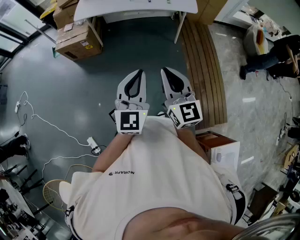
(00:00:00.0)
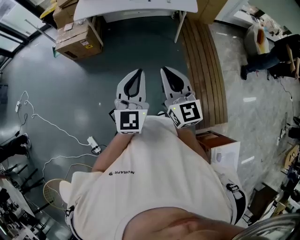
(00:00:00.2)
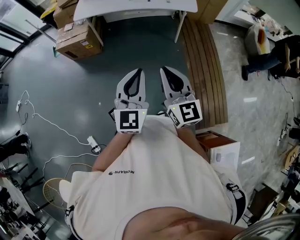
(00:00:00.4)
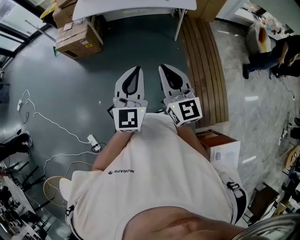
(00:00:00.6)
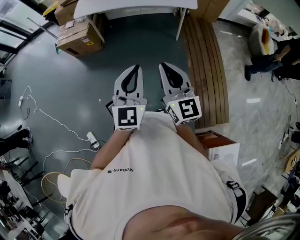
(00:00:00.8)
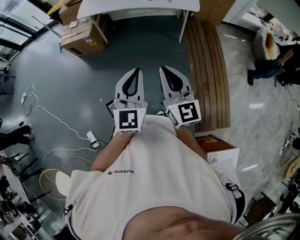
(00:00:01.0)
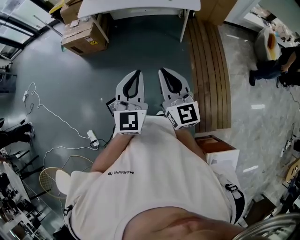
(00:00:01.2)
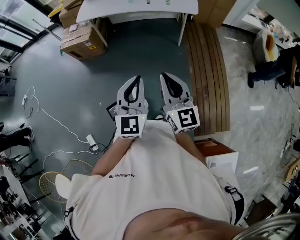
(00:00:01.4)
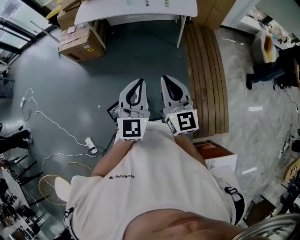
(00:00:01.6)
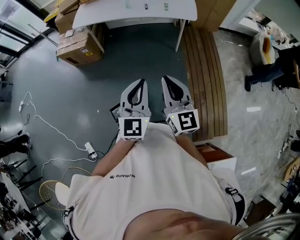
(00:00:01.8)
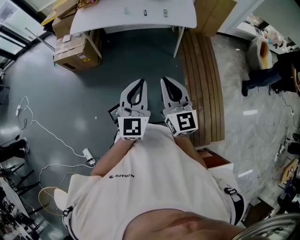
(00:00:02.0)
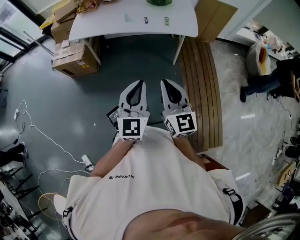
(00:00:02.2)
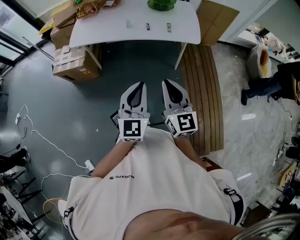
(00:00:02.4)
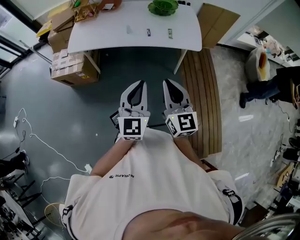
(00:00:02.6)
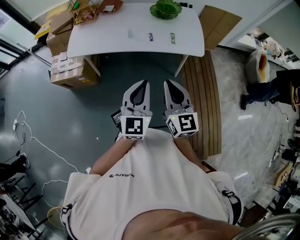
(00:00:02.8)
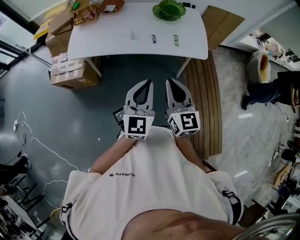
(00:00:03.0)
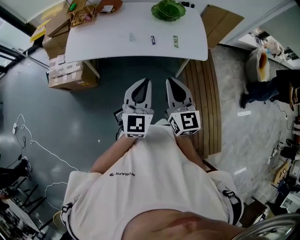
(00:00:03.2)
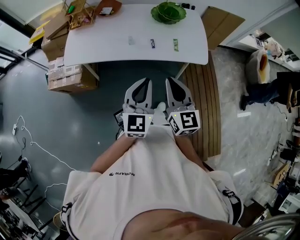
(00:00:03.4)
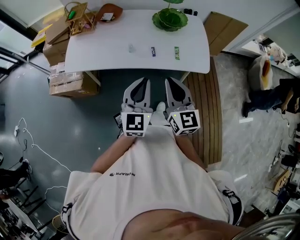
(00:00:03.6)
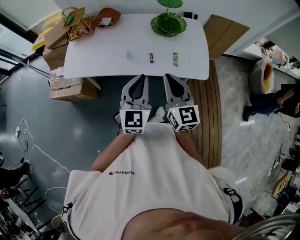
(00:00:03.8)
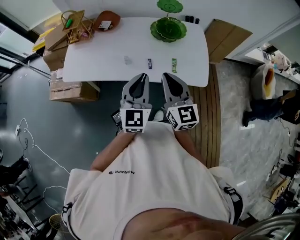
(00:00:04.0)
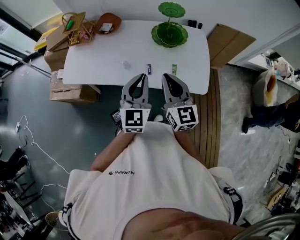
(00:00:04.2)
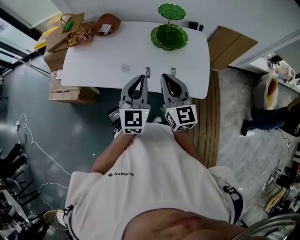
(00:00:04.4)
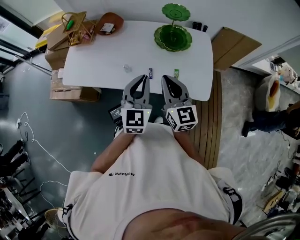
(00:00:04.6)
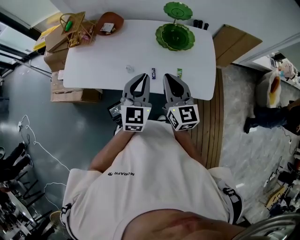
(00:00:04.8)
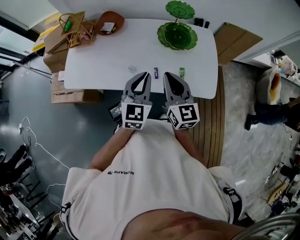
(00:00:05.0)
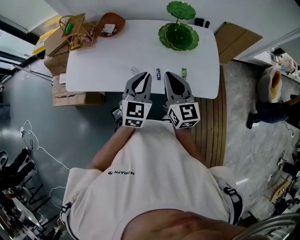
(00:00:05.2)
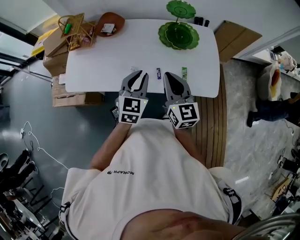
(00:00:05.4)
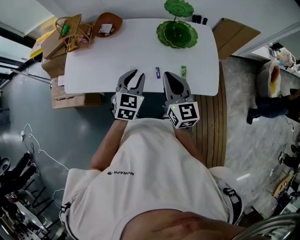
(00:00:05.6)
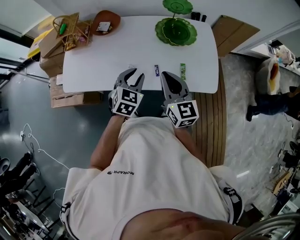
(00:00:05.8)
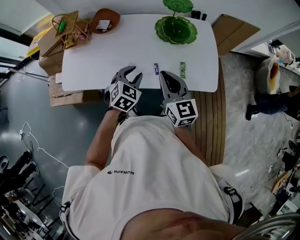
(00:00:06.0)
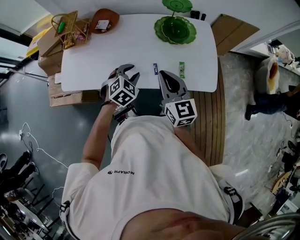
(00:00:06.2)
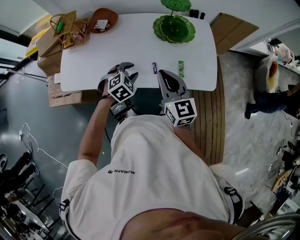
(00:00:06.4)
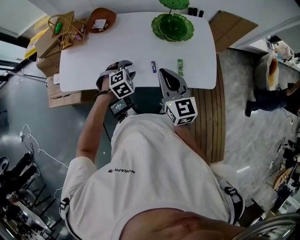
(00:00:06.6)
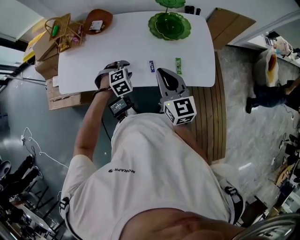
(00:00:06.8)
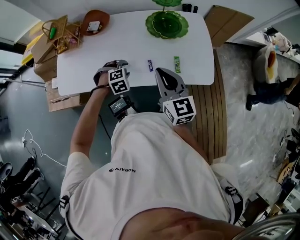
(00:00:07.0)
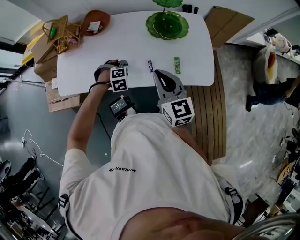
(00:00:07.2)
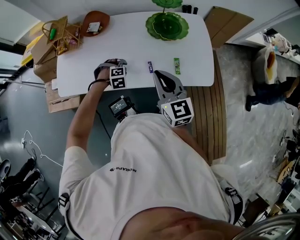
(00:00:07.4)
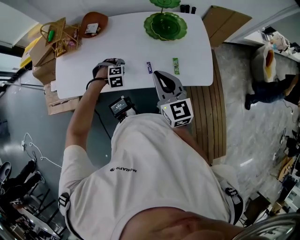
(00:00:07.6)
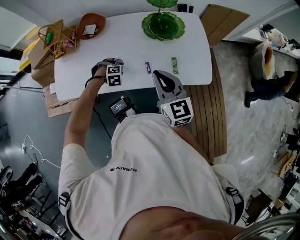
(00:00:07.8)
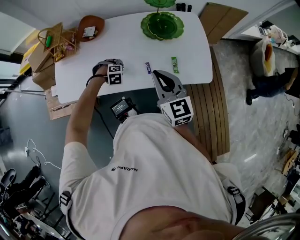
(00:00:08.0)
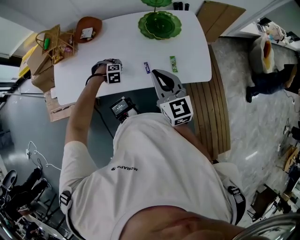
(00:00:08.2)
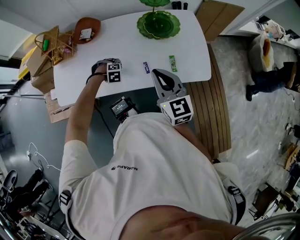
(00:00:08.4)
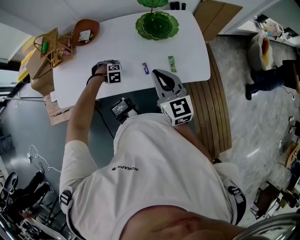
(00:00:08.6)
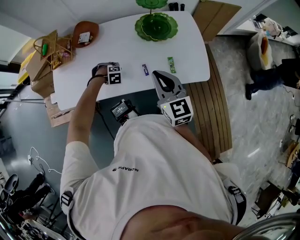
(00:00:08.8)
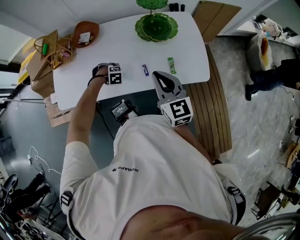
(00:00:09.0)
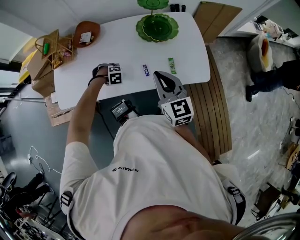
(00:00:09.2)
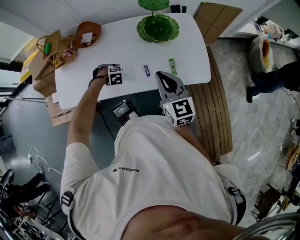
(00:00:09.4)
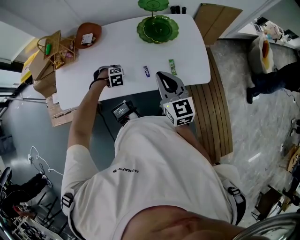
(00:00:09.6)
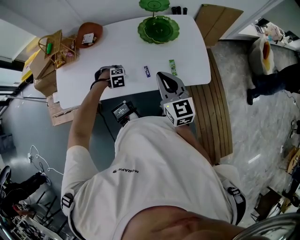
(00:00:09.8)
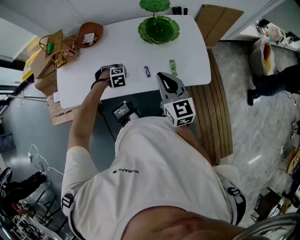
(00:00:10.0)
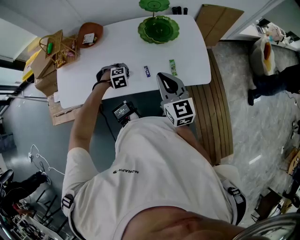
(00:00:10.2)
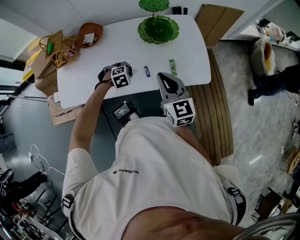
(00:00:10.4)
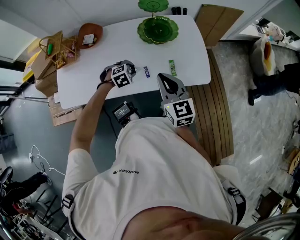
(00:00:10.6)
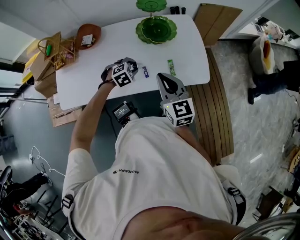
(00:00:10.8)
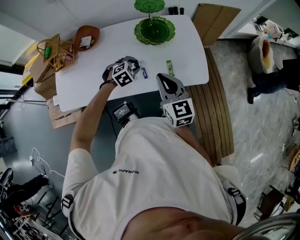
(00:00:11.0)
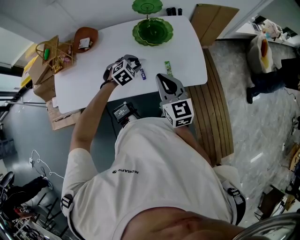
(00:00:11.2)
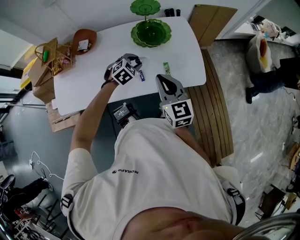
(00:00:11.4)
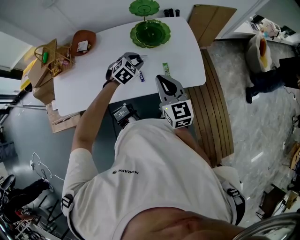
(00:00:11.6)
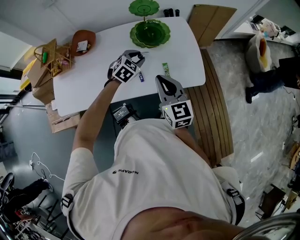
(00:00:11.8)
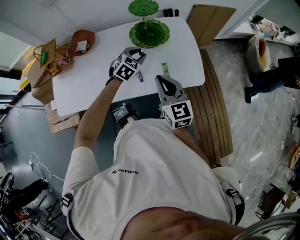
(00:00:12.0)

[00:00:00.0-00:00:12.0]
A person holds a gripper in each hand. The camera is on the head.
00:00:00.0 to 00:00:01.6: Both grippers move to the right, roughly 10 cm.
00:00:01.6 to 00:00:03.0: Both grippers are carried forward, roughly 40 cm.
00:00:03.0 to 00:00:04.4: Both grippers travel together forward, approximately 30 cm.
00:00:04.4 to 00:00:06.0: The right gripper heads to the left, covering some 5 cm. Meanwhile the left gripper travels downward, forward and to the left by some 20 cm, tilts its fingers about 30 degrees downward, and opens its fingers.
00:00:06.0 to 00:00:07.6: The left gripper shifts about 15 cm downward, and rotates around the line of its fingers by approximately 50 degrees, clockwise from behind.
00:00:07.6 to 00:00:09.0: The grippers move only a little.
00:00:09.0 to 00:00:10.4: The left gripper shifts some 10 cm upward, and rotates about 20 degrees.
00:00:10.4 to 00:00:12.0: The left gripper heads upward, forward and to the right, covering about 20 cm, and points its fingers about 30 degrees further upward.

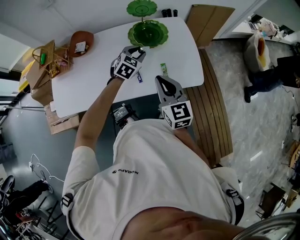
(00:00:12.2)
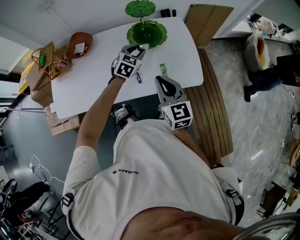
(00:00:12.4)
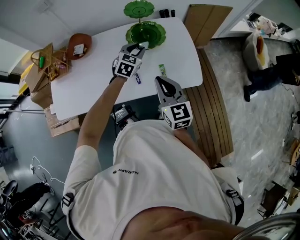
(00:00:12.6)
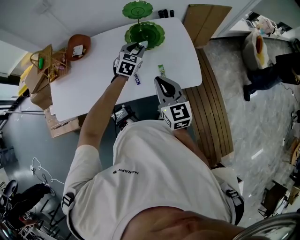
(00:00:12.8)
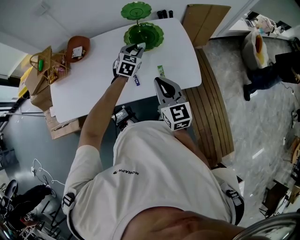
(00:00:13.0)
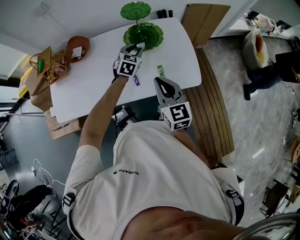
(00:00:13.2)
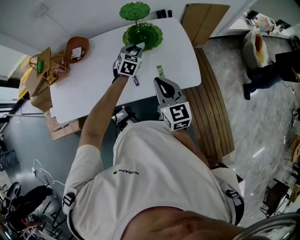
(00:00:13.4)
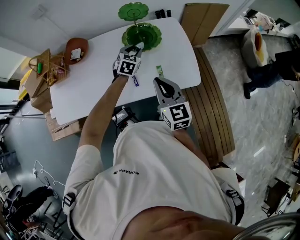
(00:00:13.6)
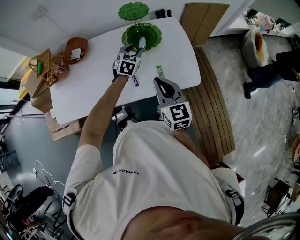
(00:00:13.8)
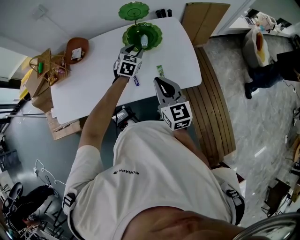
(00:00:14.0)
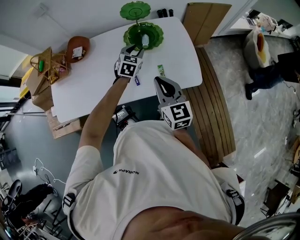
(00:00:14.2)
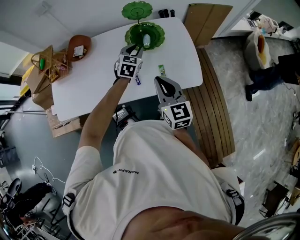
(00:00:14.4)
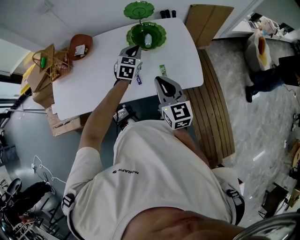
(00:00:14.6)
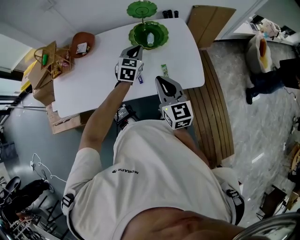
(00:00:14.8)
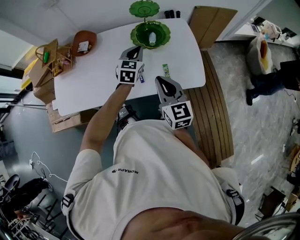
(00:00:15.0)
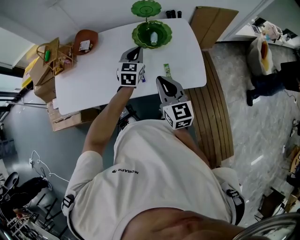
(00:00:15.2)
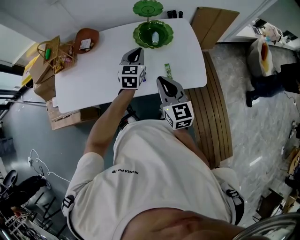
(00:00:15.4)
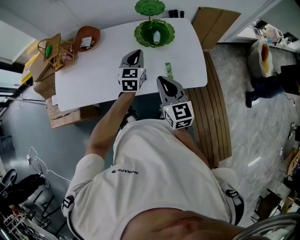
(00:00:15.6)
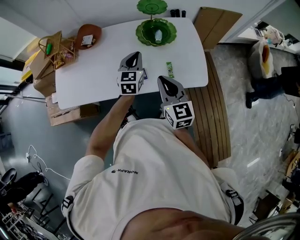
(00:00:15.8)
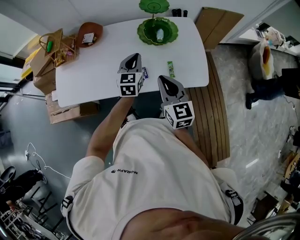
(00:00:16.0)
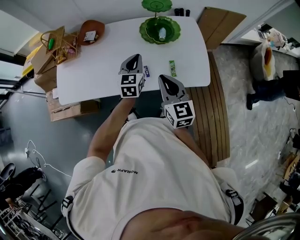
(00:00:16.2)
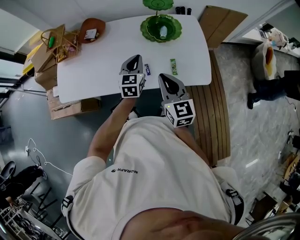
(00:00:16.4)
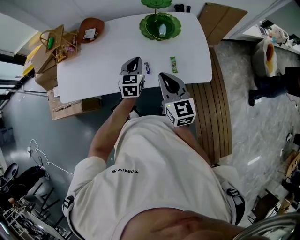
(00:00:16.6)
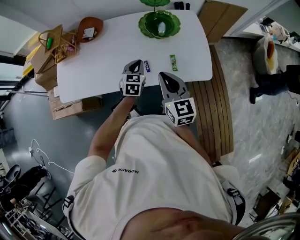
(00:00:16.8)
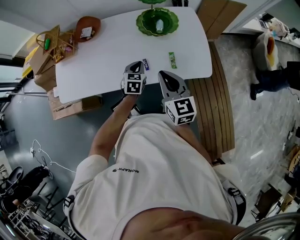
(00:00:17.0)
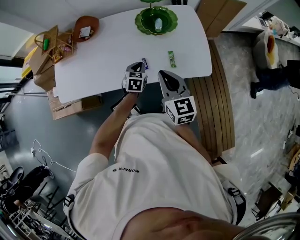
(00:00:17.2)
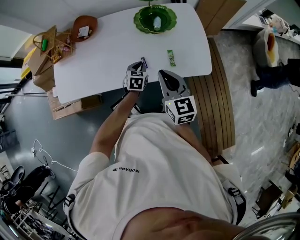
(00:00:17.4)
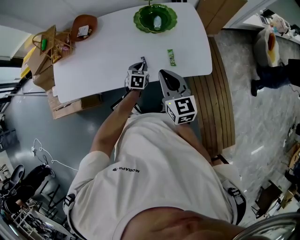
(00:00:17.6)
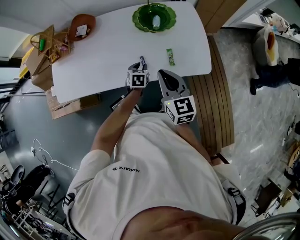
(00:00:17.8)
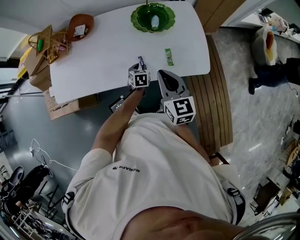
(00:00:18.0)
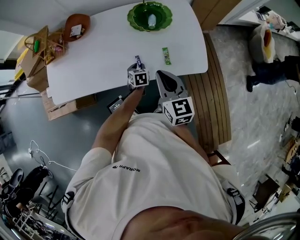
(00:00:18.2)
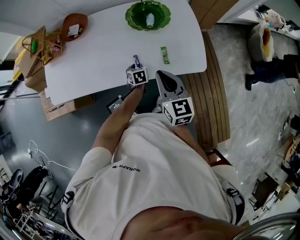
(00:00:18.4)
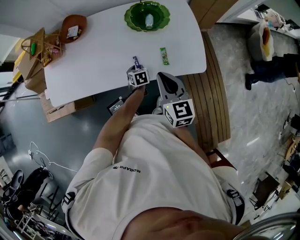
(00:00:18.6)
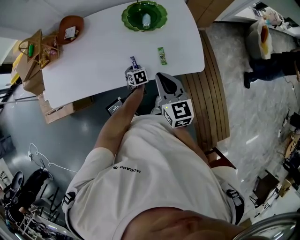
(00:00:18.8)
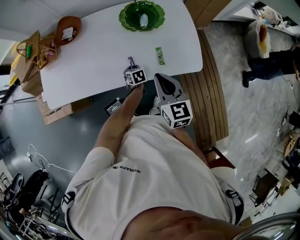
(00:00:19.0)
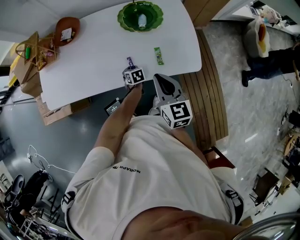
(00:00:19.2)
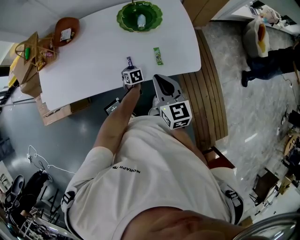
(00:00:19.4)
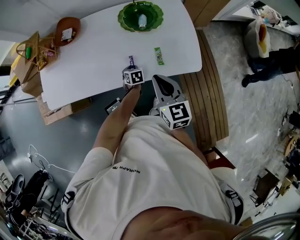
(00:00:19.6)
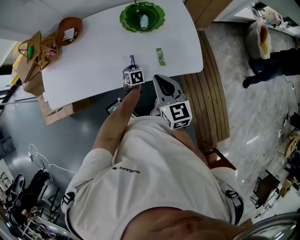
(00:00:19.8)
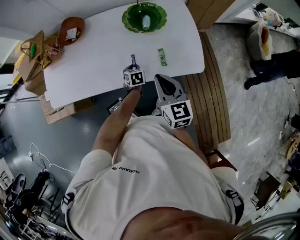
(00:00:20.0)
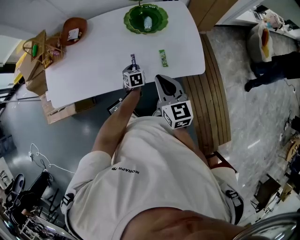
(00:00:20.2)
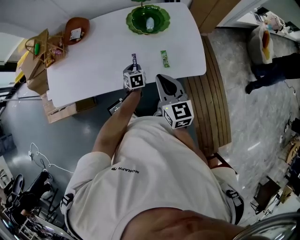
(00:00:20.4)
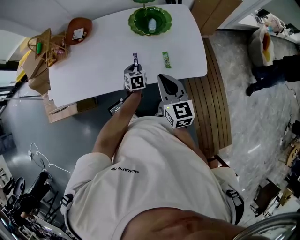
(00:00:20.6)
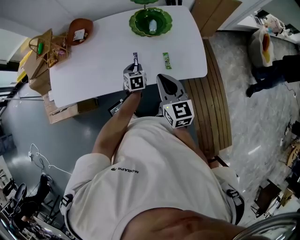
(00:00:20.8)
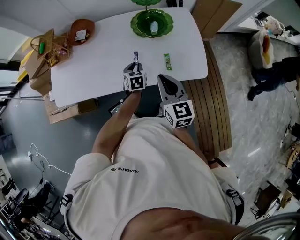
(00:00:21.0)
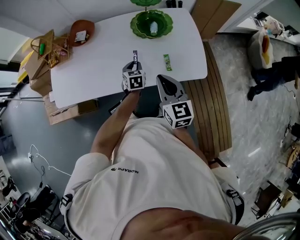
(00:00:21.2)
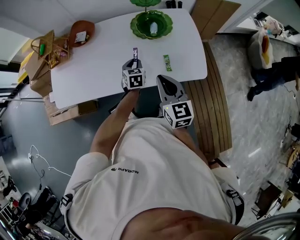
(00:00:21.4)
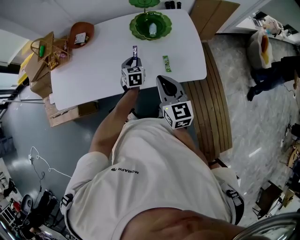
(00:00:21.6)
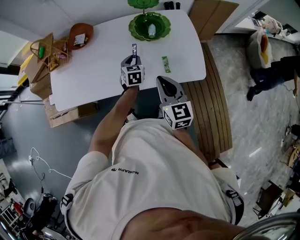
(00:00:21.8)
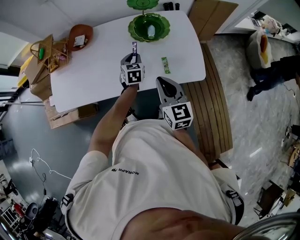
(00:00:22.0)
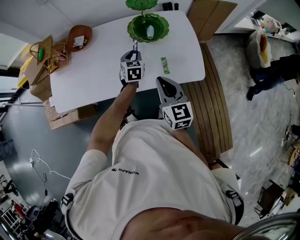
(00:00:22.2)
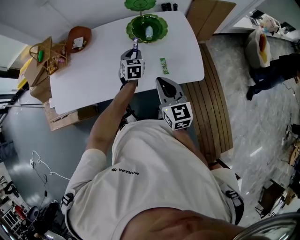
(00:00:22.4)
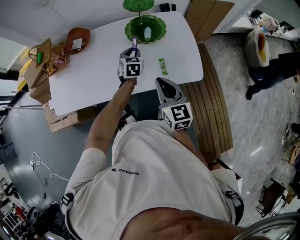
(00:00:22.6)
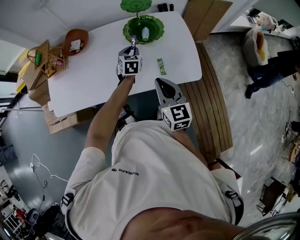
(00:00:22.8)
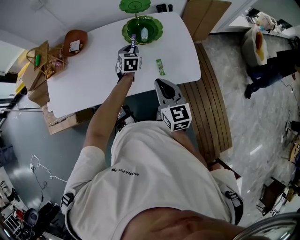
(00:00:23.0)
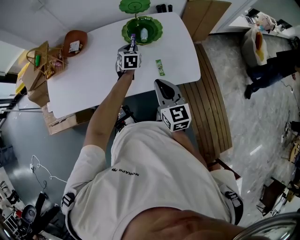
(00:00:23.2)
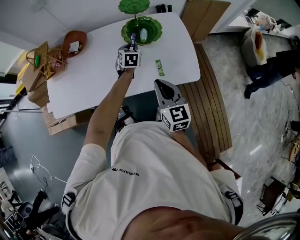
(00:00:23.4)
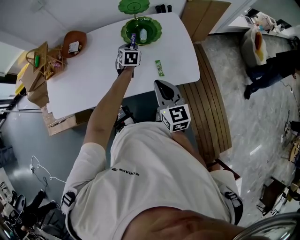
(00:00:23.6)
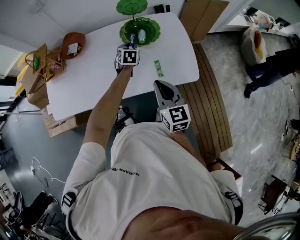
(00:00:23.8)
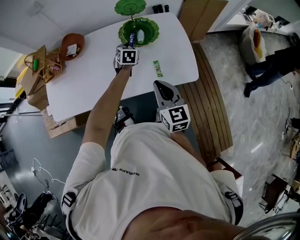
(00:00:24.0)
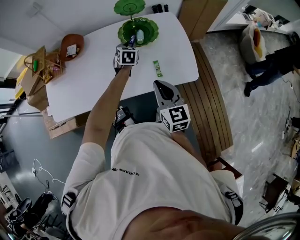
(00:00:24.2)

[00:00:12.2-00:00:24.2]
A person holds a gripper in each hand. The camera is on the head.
00:00:12.2 to 00:00:13.8: The left gripper is displaced forward by some 5 cm.
00:00:13.8 to 00:00:15.2: The left gripper heads upward and backward, covering about 10 cm, and closes up.
00:00:15.2 to 00:00:16.6: The left gripper is displaced backward, downward and to the left by some 10 cm.
00:00:16.6 to 00:00:18.2: The left gripper heads downward, covering roughly 20 cm, changes its angle by about 30 degrees, and opens up.
00:00:18.2 to 00:00:19.8: The grippers make only small movements.
00:00:19.8 to 00:00:21.2: The left gripper heads upward, covering approximately 10 cm.
00:00:21.2 to 00:00:22.6: The left gripper moves forward and upward, approximately 10 cm.
00:00:22.6 to 00:00:24.2: The left gripper is displaced forward by roughly 5 cm.
